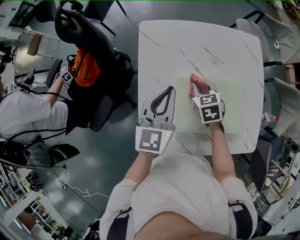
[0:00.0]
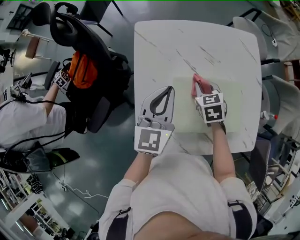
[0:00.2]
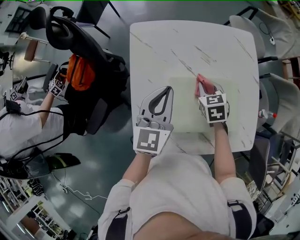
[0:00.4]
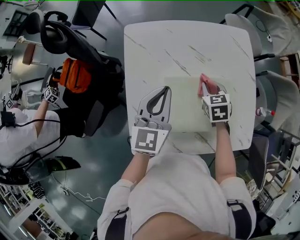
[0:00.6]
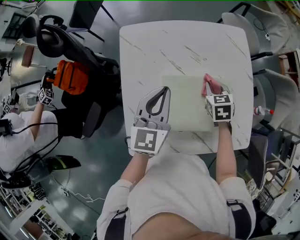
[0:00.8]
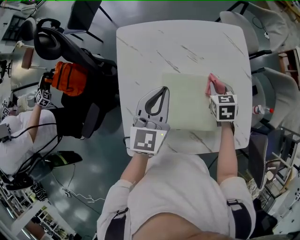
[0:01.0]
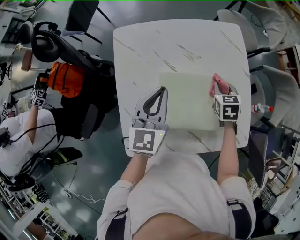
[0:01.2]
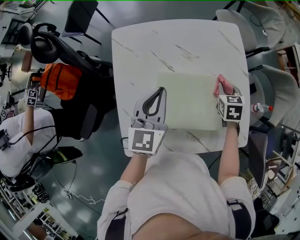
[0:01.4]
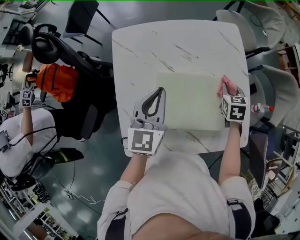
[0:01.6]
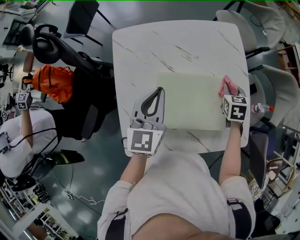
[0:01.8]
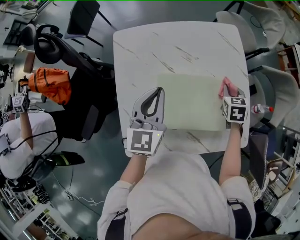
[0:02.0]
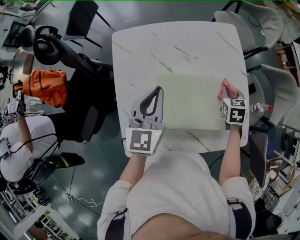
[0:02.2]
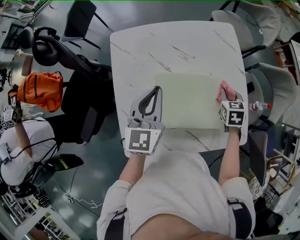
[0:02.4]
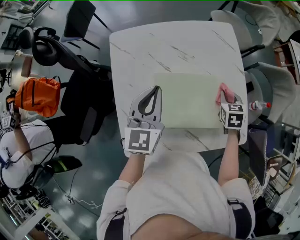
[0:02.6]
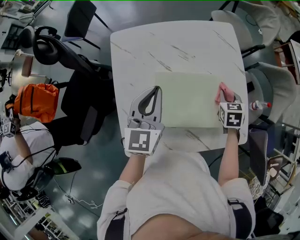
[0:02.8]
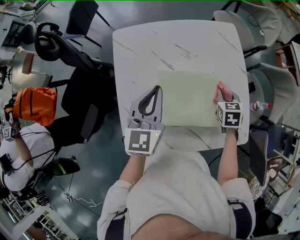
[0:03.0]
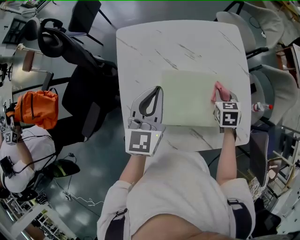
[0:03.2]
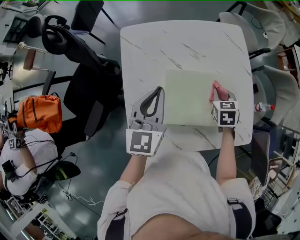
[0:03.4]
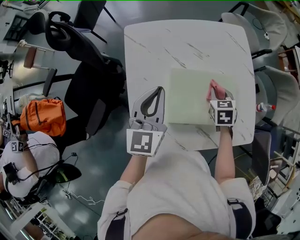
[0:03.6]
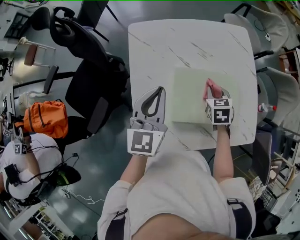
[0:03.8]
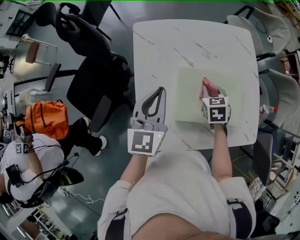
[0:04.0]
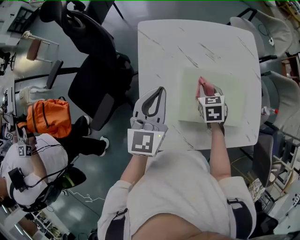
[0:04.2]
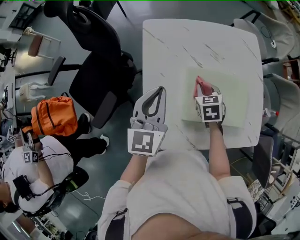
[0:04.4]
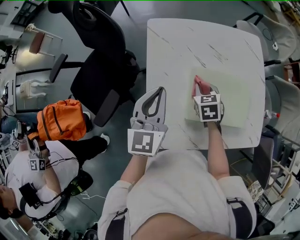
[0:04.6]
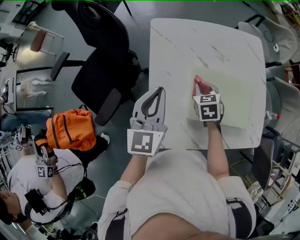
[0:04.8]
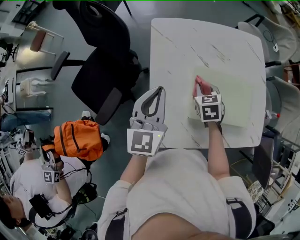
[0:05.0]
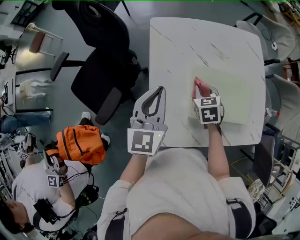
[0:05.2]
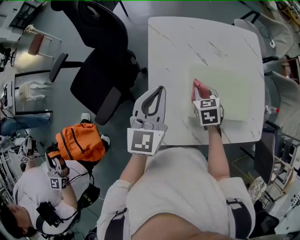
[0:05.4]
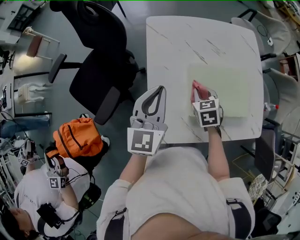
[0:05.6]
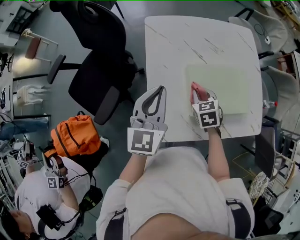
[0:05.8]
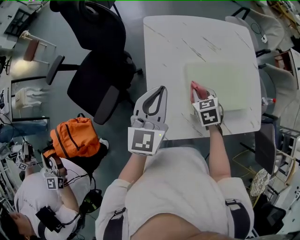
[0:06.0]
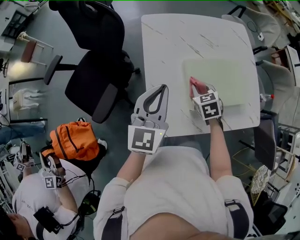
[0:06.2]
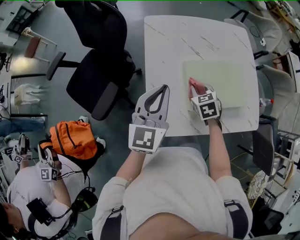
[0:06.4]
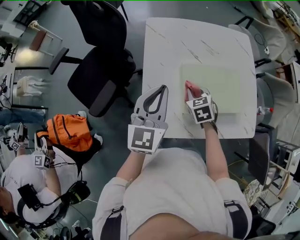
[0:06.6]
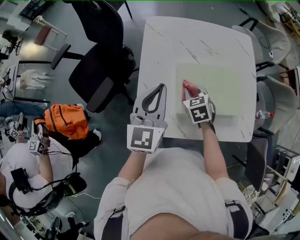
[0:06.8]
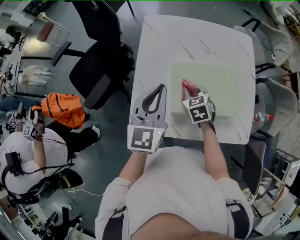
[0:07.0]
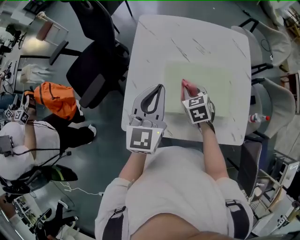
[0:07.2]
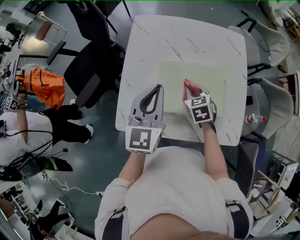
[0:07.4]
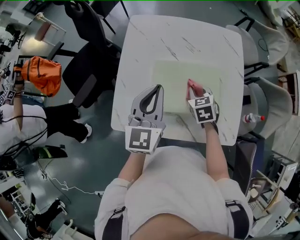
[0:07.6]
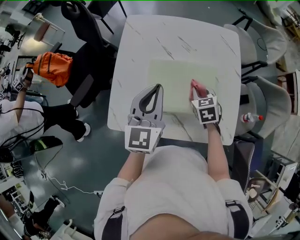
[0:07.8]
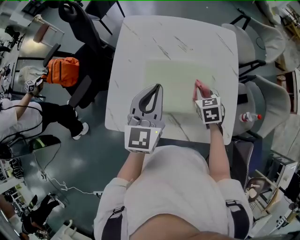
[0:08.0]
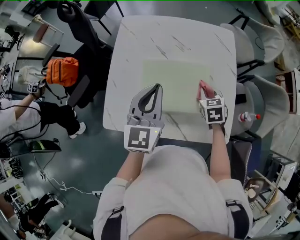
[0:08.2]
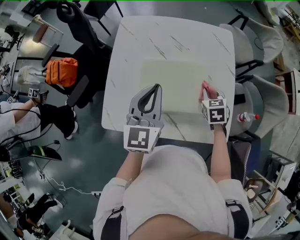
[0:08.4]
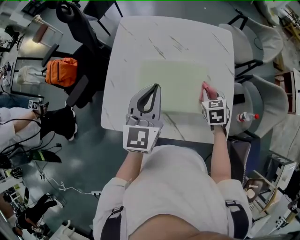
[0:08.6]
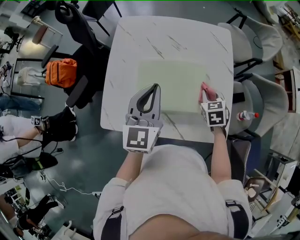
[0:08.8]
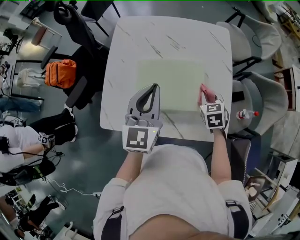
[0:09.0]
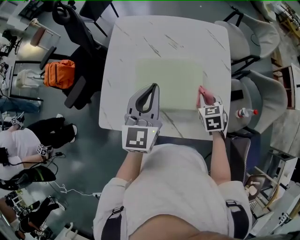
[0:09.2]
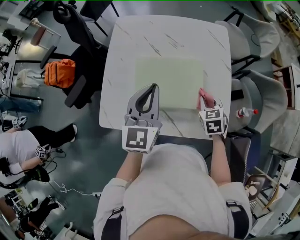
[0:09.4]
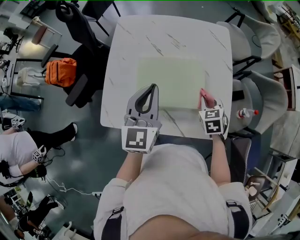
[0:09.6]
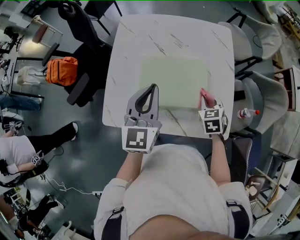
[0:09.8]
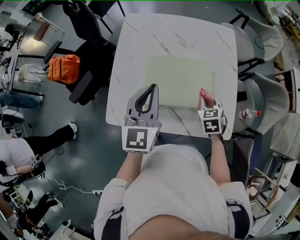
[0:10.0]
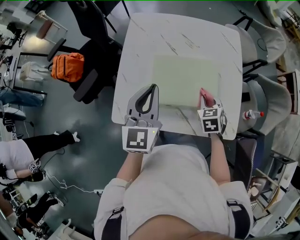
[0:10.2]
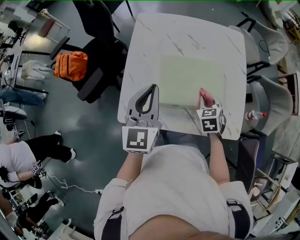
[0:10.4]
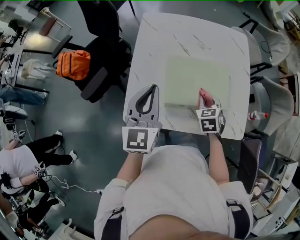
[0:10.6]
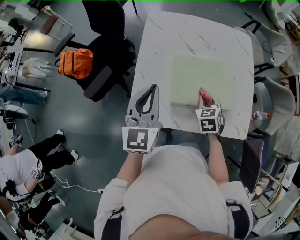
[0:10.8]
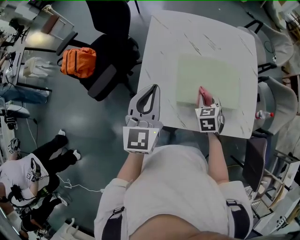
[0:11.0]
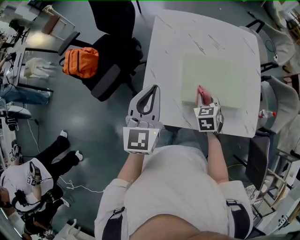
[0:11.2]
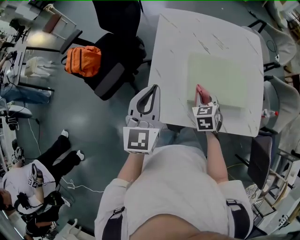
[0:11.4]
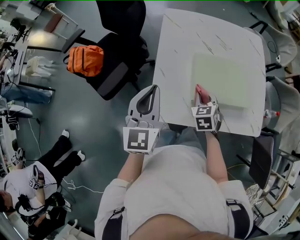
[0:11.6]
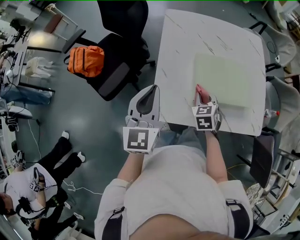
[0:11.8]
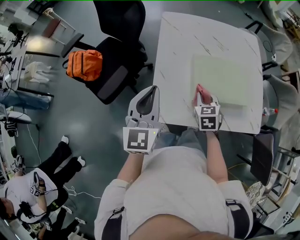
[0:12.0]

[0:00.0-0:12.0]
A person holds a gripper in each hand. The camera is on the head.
0:00.0 to 0:01.6: The right gripper travels to the right by approximately 25 cm, and changes its angle by roughly 20 degrees. Meanwhile the left gripper goes roughly 10 cm to the right.
0:01.6 to 0:03.0: The grippers make only small movements.
0:03.0 to 0:04.4: The left gripper moves to the left, about 10 cm. Meanwhile the right gripper shifts approximately 25 cm to the left.
0:04.4 to 0:06.0: Both grippers move backward, about 10 cm.
0:06.0 to 0:07.6: Both grippers travel together to the right, roughly 15 cm.
0:07.6 to 0:09.0: The right gripper shifts approximately 15 cm to the right. The left gripper travels to the right by about 5 cm.
0:09.0 to 0:10.4: The grippers both shift to the left by roughly 10 cm.
0:10.4 to 0:12.0: Both grippers travel together to the left, approximately 15 cm.

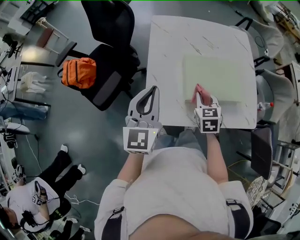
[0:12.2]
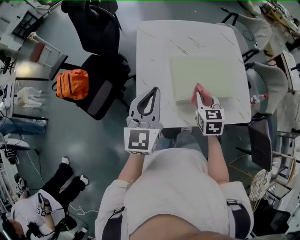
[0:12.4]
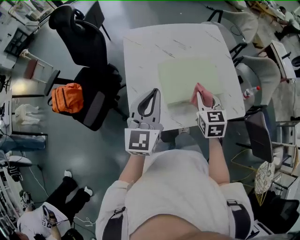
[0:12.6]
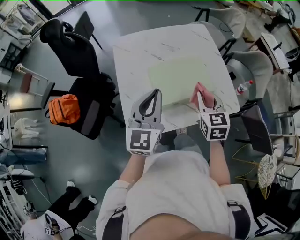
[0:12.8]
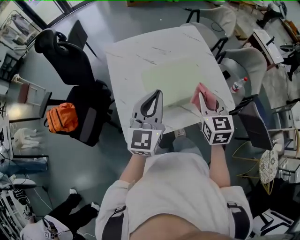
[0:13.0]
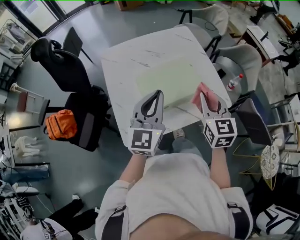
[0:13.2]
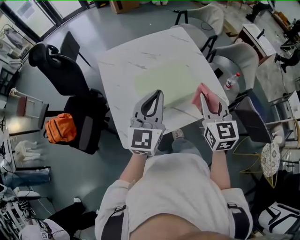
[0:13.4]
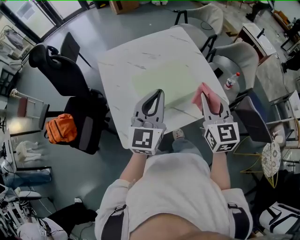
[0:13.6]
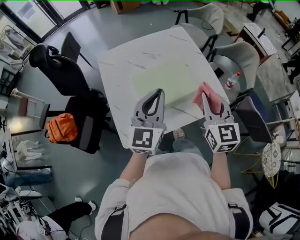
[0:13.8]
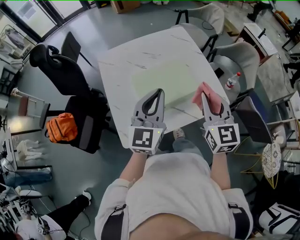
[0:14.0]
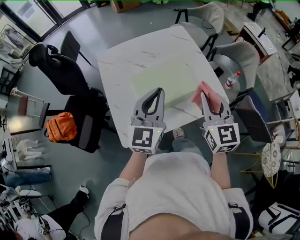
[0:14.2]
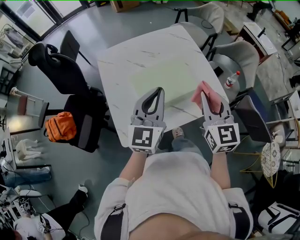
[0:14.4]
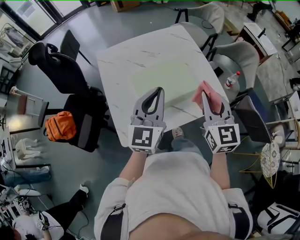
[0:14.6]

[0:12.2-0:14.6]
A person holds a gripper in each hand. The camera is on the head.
0:12.2 to 0:13.4: The left gripper moves to the right, some 20 cm, and swivels about 30 degrees. Meanwhile the right gripper moves to the right and upward, approximately 25 cm, and rotates roughly 30 degrees.
0:13.4 to 0:14.6: The grippers move only a little.

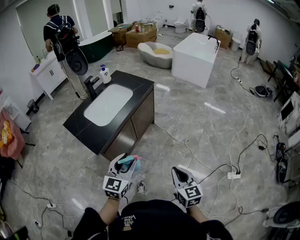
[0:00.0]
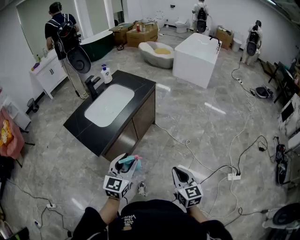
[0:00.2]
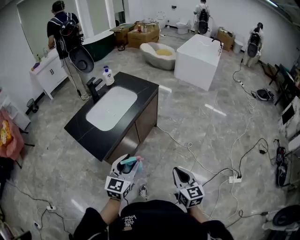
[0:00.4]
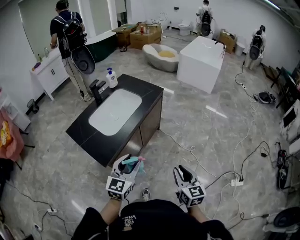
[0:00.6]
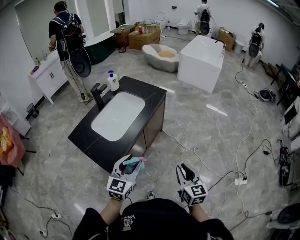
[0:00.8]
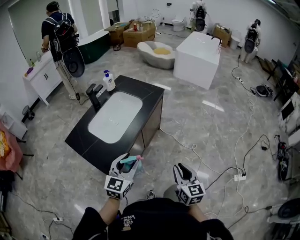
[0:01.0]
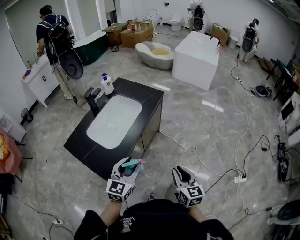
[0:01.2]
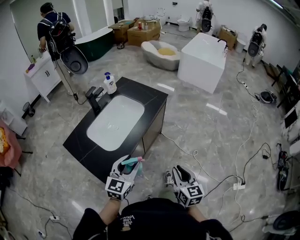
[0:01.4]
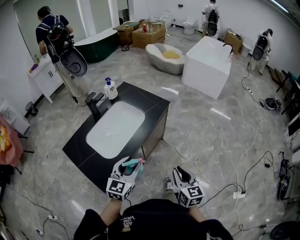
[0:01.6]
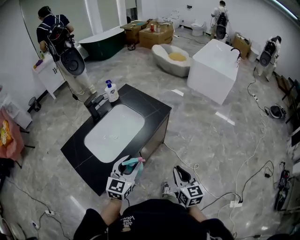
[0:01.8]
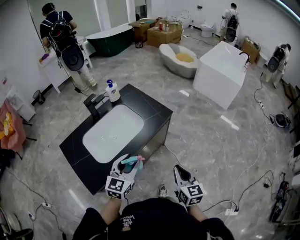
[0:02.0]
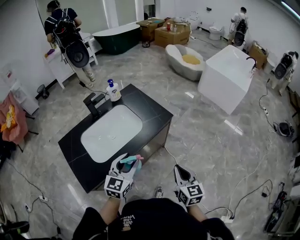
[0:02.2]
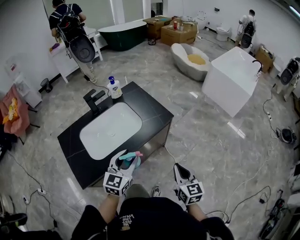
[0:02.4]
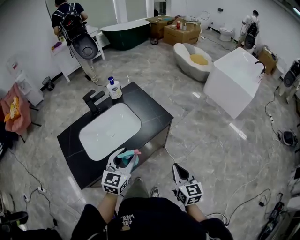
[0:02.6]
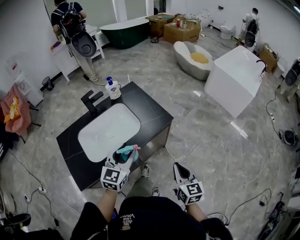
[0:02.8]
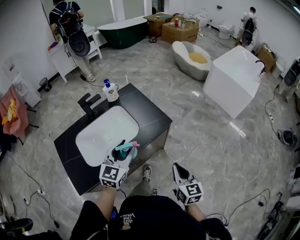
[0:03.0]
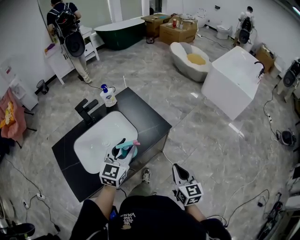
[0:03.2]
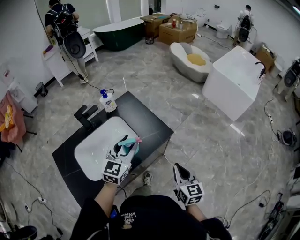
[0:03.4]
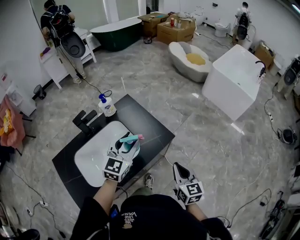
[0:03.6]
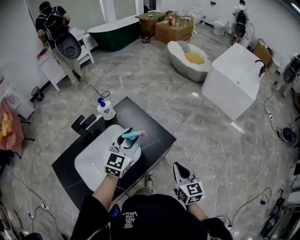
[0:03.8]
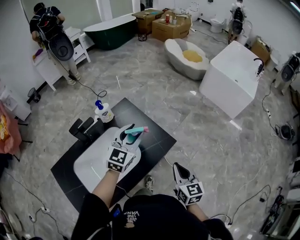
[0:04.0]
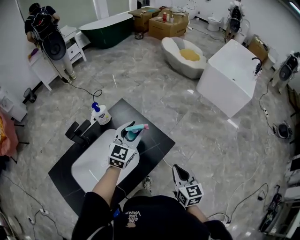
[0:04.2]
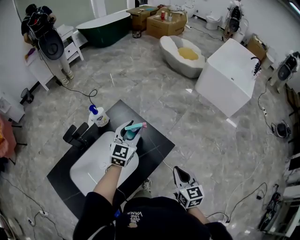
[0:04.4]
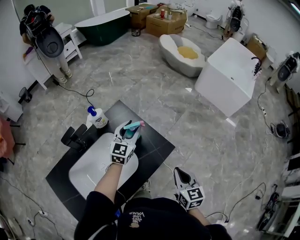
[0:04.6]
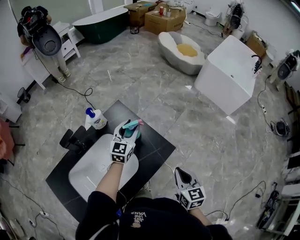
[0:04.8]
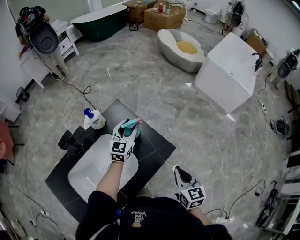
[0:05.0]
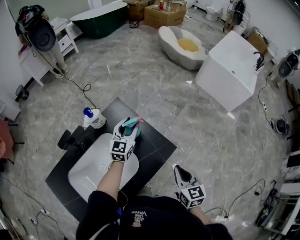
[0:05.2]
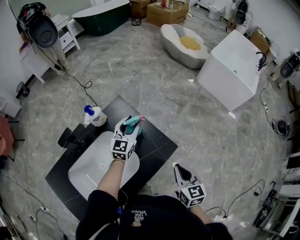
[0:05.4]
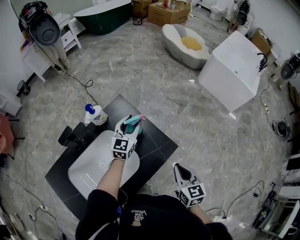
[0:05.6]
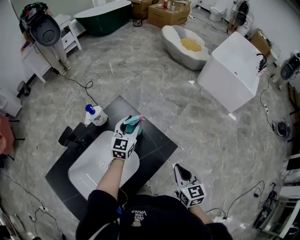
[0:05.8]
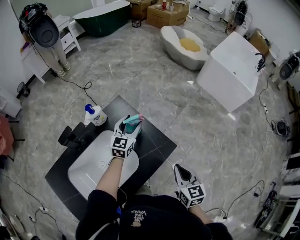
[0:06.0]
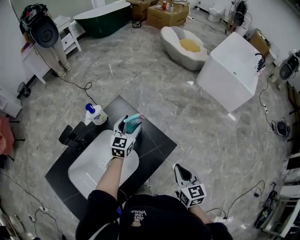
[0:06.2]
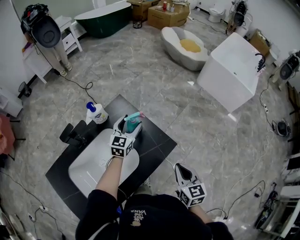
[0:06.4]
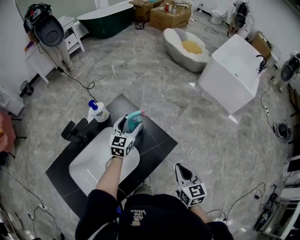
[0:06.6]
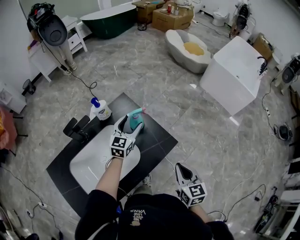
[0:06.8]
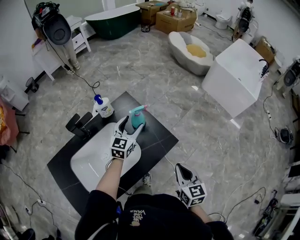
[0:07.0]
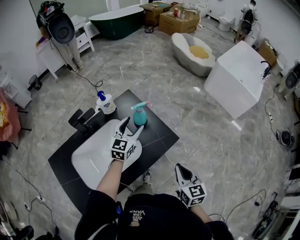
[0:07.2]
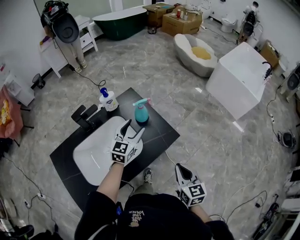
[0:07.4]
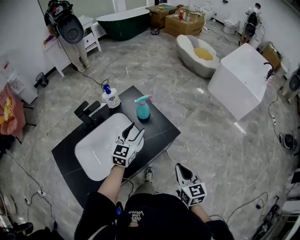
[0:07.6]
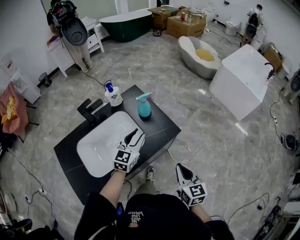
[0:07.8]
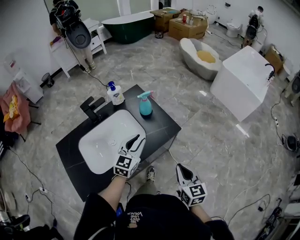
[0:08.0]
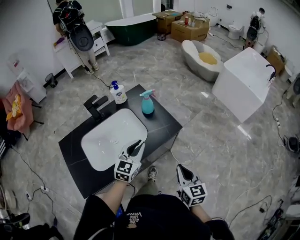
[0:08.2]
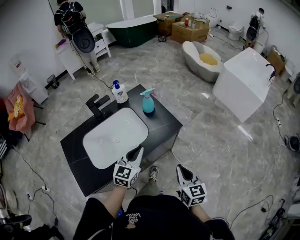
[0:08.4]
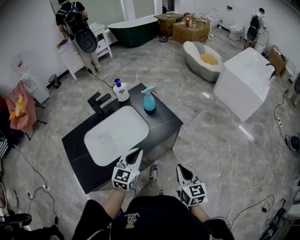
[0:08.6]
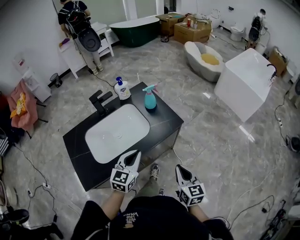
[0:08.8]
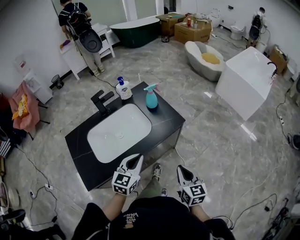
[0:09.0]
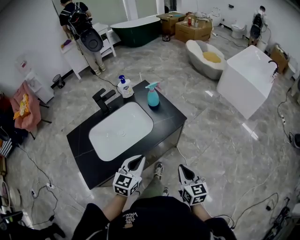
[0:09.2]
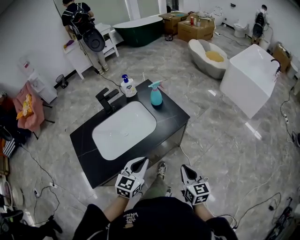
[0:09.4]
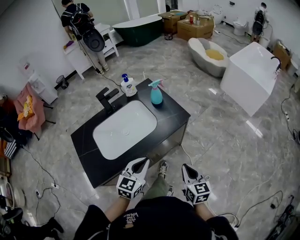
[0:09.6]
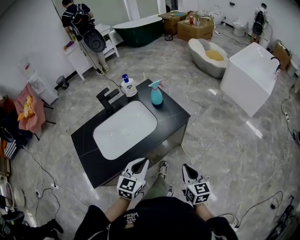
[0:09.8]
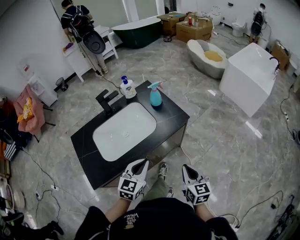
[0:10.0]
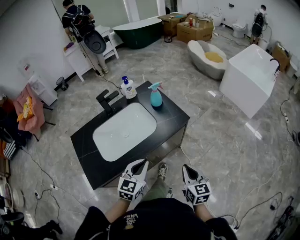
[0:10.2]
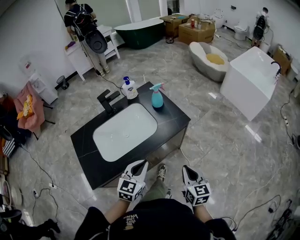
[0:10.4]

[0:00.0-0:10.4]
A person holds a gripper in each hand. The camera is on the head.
0:00.0 to 0:01.4: Both grippers move forward and to the left, roughly 25 cm.
0:01.4 to 0:03.0: The grippers both shift forward and to the right by some 30 cm. The left gripper changes its angle by about 20 degrees.
0:03.0 to 0:04.4: The left gripper travels forward by about 30 cm, while the right gripper shifts some 20 cm forward.
0:04.4 to 0:06.0: The left gripper travels downward and forward by about 10 cm.
0:06.0 to 0:07.4: The right gripper shifts some 10 cm backward; the left gripper heads backward, covering approximately 15 cm.
0:07.4 to 0:09.0: The left gripper travels backward by about 30 cm, and closes up. Meanwhile the right gripper moves backward, some 15 cm.
0:09.0 to 0:10.4: The grippers move only a little.
